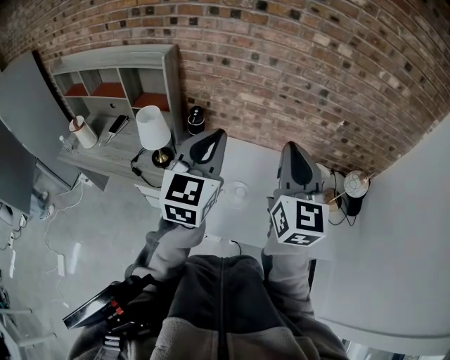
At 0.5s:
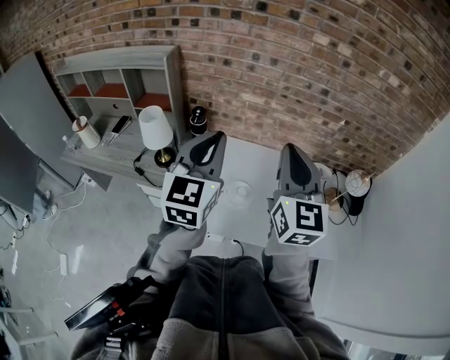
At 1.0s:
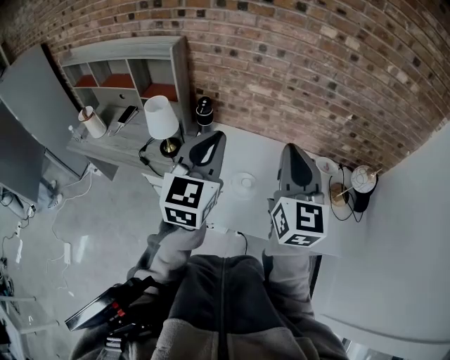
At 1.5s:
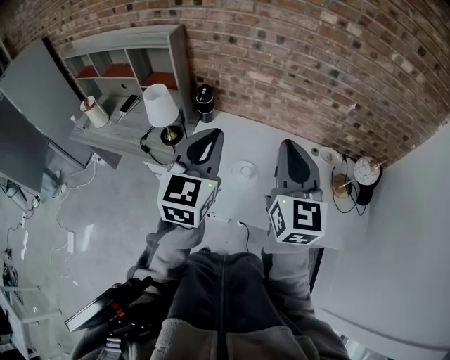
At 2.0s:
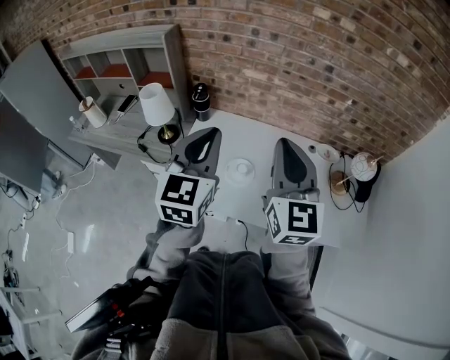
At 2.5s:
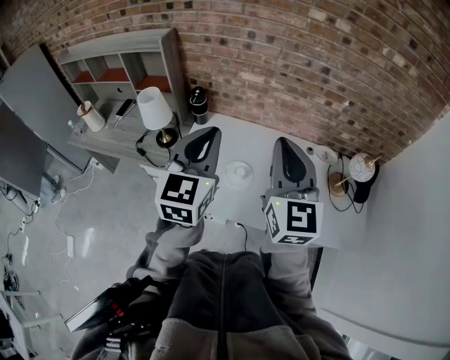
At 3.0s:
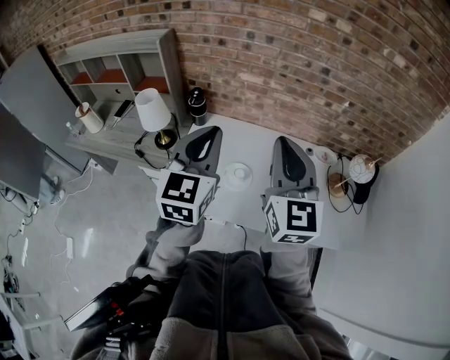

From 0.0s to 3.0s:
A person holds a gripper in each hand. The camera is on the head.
From 0.0s to 1.5s: The left gripper changes place by some 5 cm. Meanwhile the right gripper ends up about 5 cm from where it was.
From 1.5s to 3.0s: There are only small adjustments of the grippers.

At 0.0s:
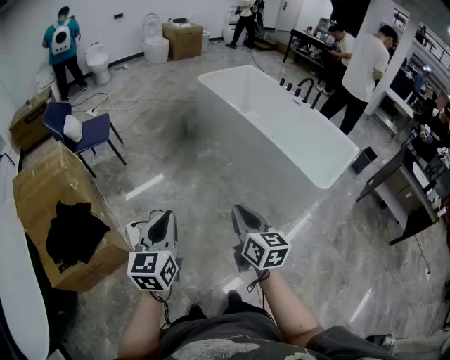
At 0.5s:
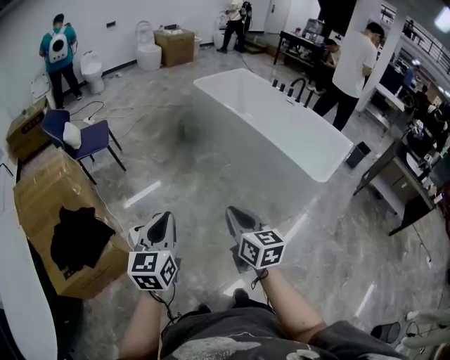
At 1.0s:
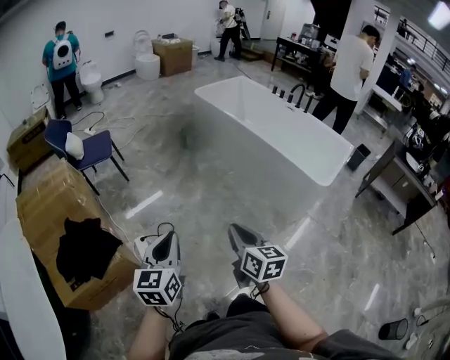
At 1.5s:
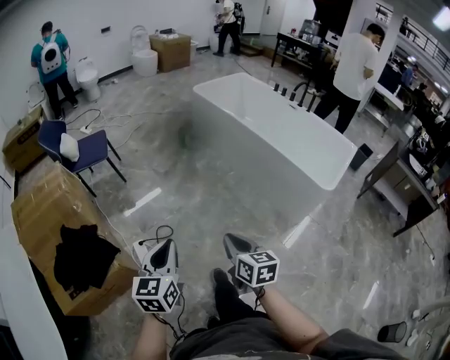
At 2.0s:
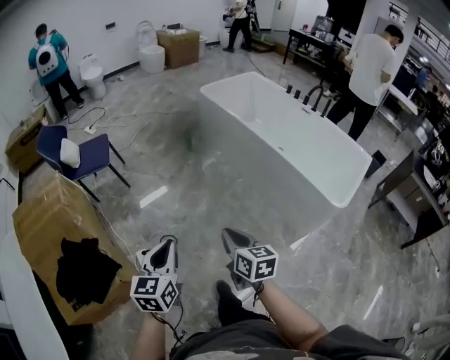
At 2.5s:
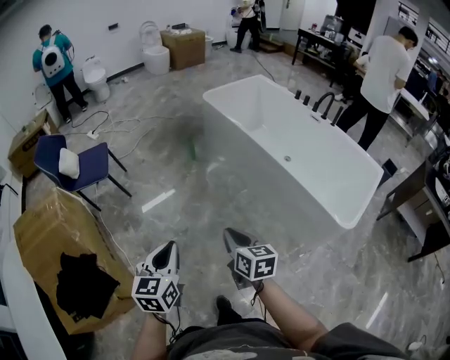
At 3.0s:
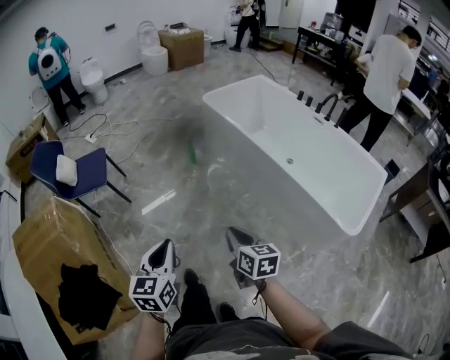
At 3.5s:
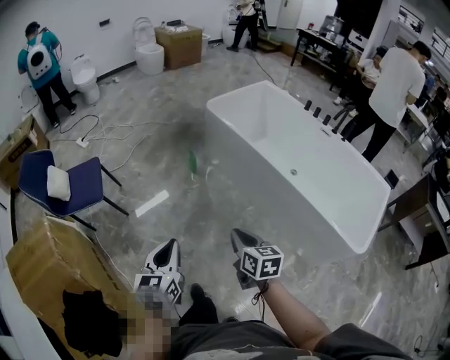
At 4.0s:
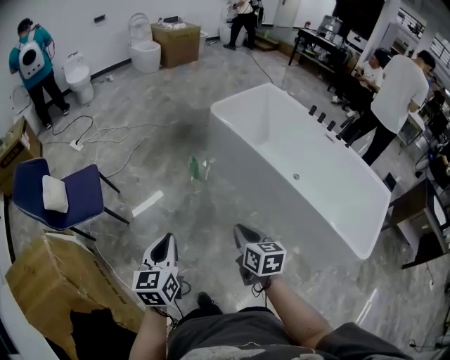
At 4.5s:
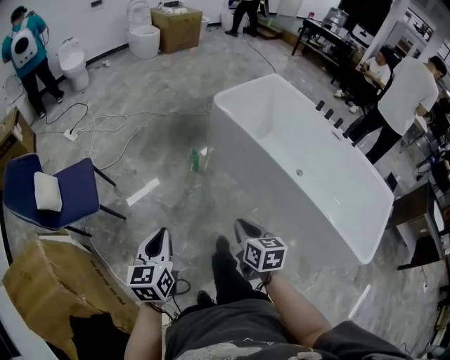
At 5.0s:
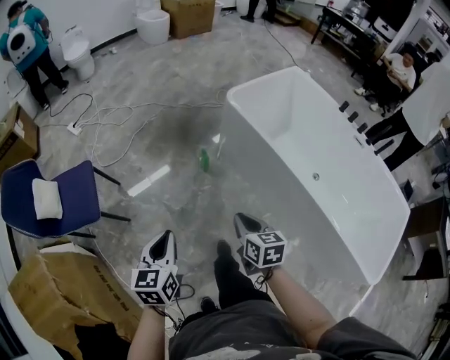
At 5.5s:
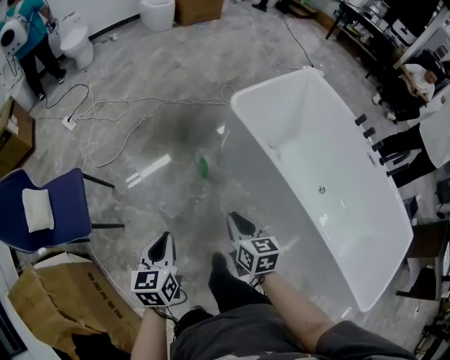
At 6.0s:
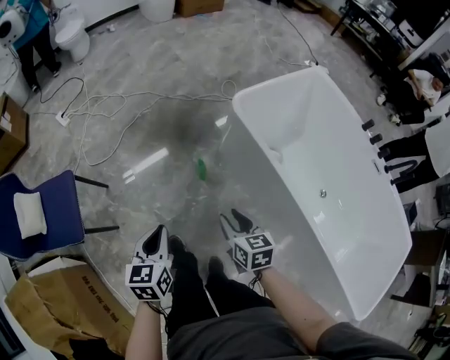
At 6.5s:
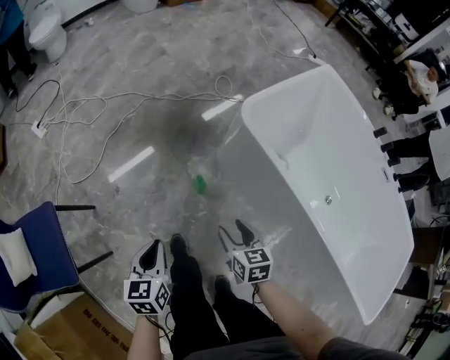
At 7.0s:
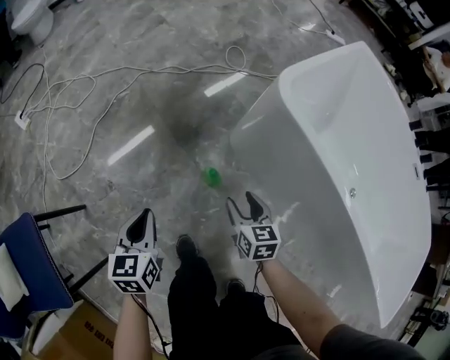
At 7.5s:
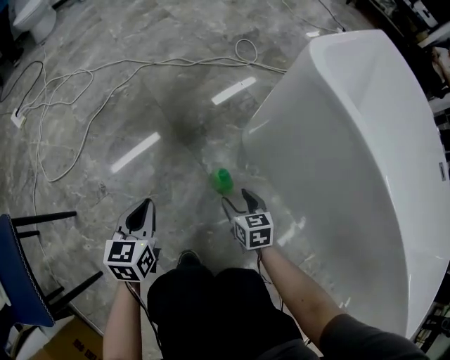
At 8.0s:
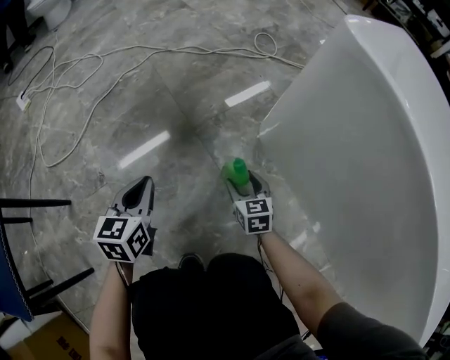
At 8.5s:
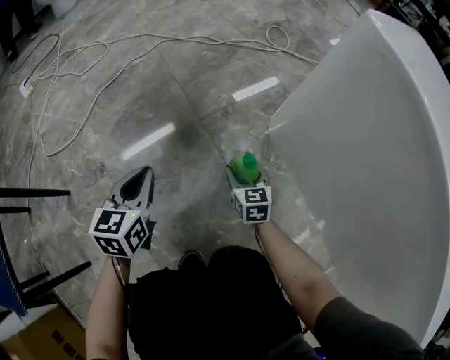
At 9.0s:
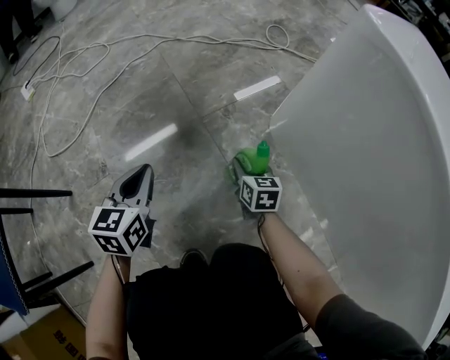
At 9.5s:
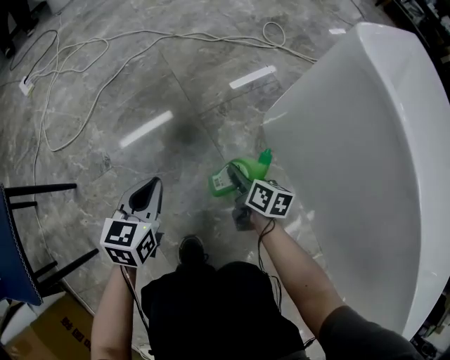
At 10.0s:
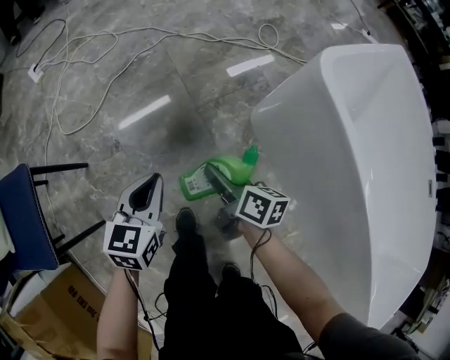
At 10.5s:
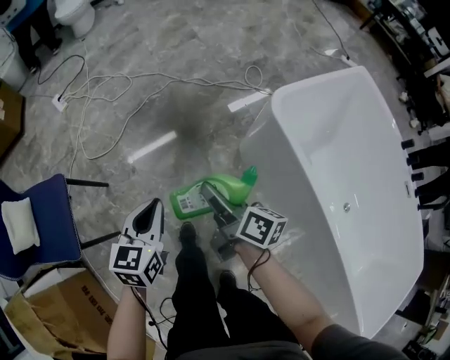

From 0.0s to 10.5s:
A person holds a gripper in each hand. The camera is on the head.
From 0.0s to 2.0s: Both grippers travel together forward, to the left and downward, roughly 15 cm.
From 2.0s to 4.0s: Both grippers are carried forward, about 40 cm.
From 4.0s to 6.5s: The two grippers travel together, forward, roughly 50 cm. The grippers both shift downward by some 30 cm. The right gripper opens.
From 6.5s to 8.5s: The two grippers go approximately 50 cm downward and forward.
From 8.5s to 10.5s: Both grippers travel together upward, roughly 50 cm. The right gripper rotates around the line of its fingers by about 50 degrees, clockwise from behind.

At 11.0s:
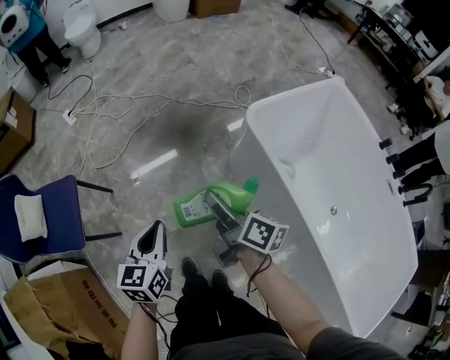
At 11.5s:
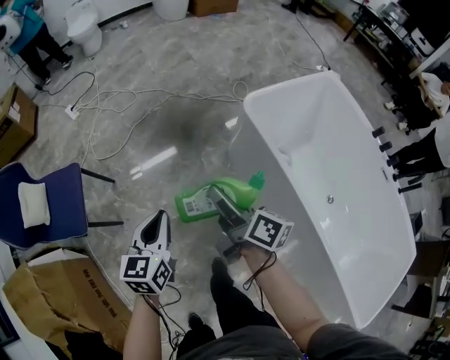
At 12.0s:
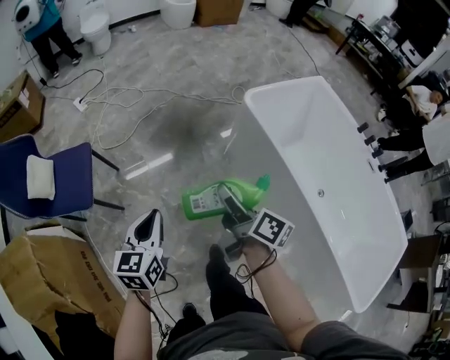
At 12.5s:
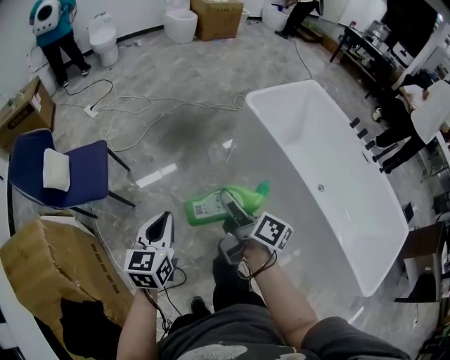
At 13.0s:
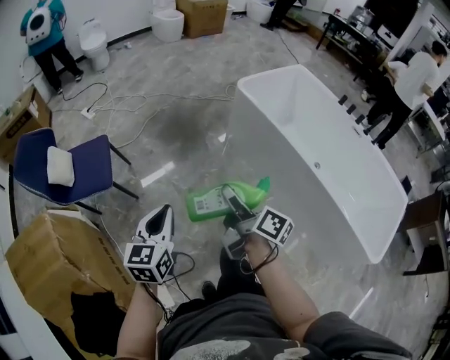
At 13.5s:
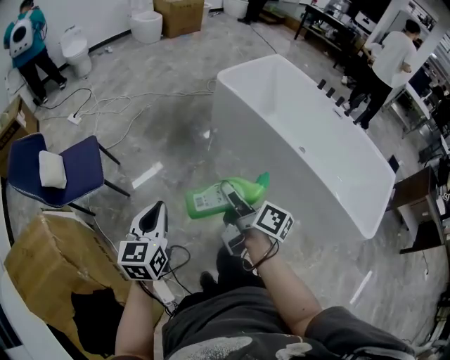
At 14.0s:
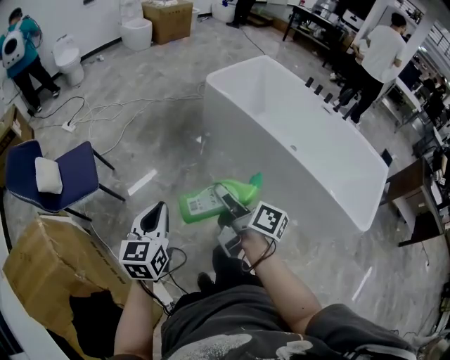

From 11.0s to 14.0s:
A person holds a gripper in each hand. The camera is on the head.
From 11.0s to 12.5s: The grippers both shift backward by some 30 cm.
From 12.5s to 14.0s: Both grippers travel together backward, about 20 cm.

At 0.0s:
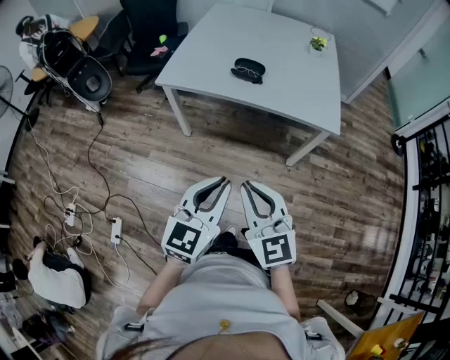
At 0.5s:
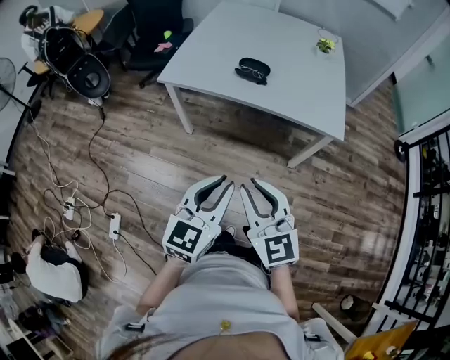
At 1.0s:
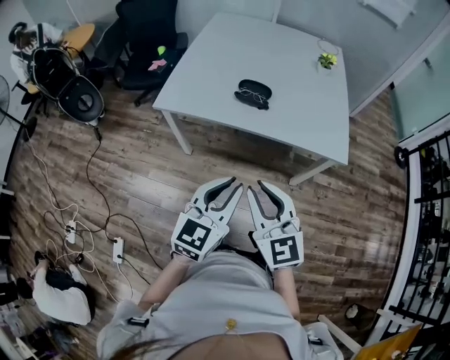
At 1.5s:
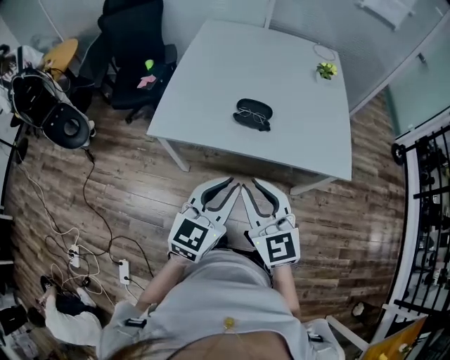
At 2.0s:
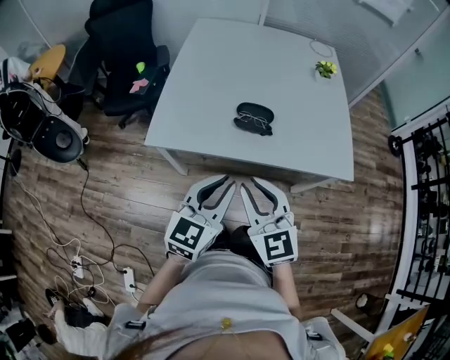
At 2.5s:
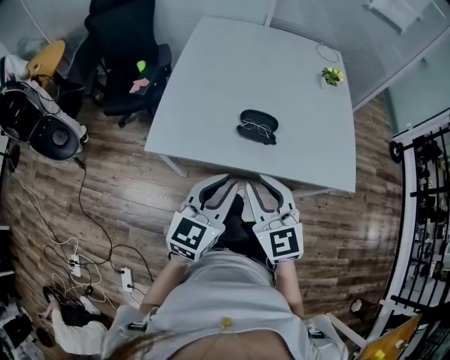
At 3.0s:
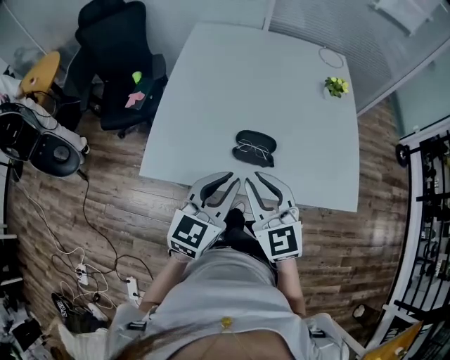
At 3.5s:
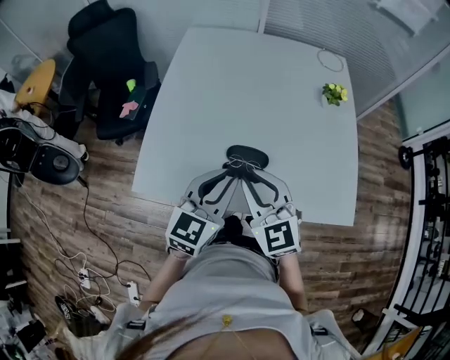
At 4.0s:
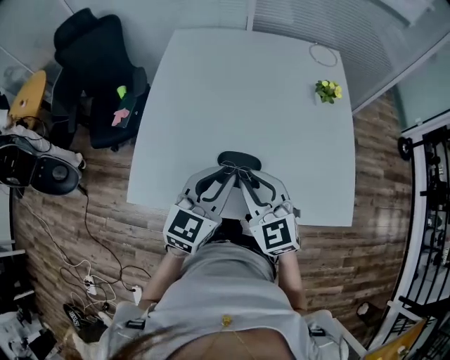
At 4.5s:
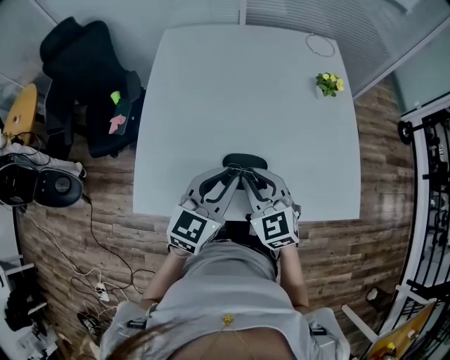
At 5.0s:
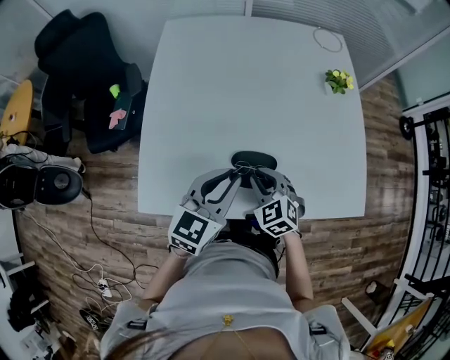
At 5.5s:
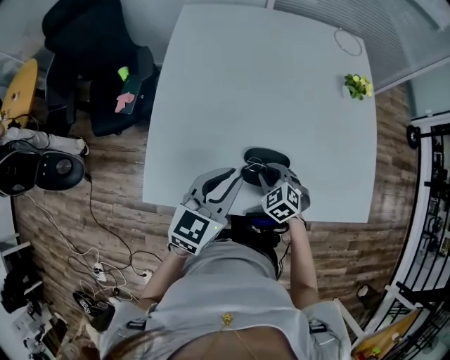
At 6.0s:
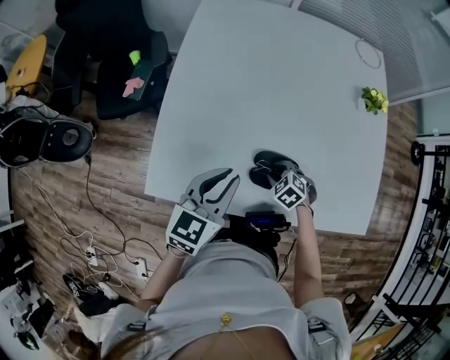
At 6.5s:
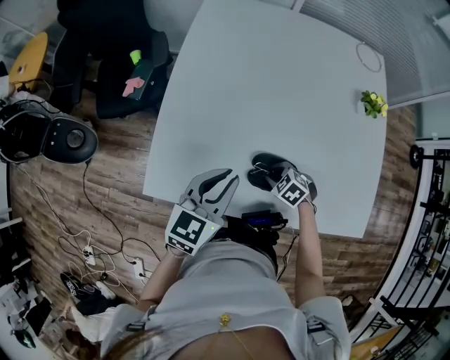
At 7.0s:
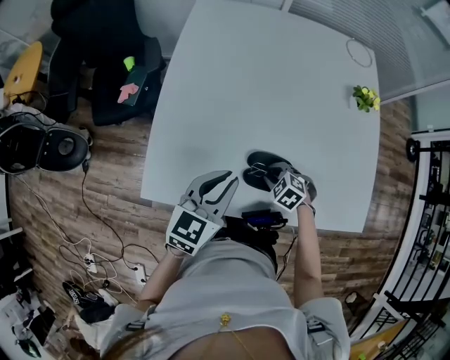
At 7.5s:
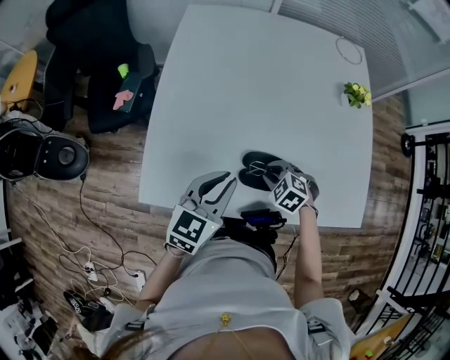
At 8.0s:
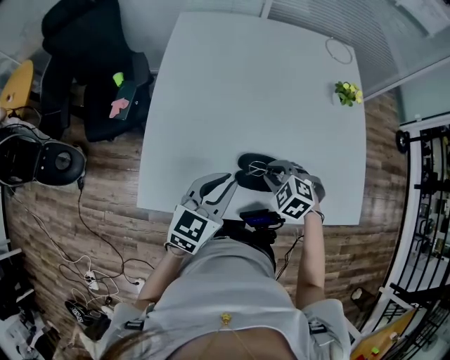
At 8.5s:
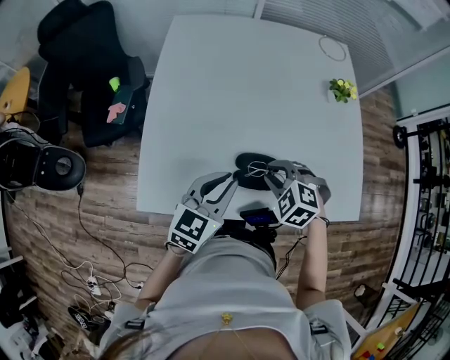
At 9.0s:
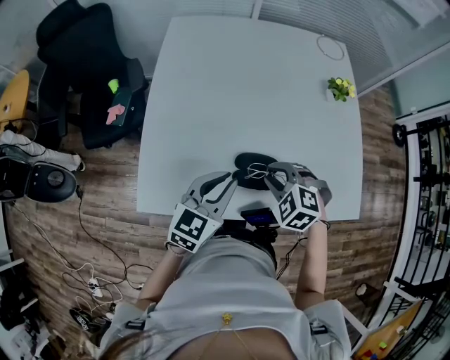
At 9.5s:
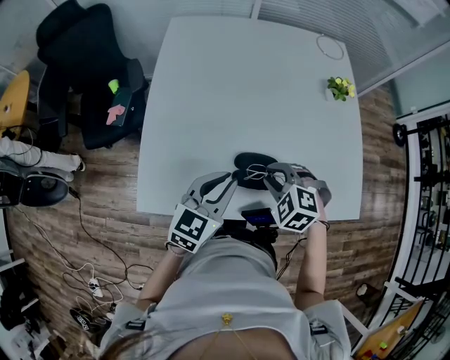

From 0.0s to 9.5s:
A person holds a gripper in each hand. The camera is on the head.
From 0.0s to 2.0s: The two grippers go roughly 30 cm forward.
From 2.0s to 4.0s: Both grippers travel together forward, about 25 cm.
From 4.0s to 5.5s: The right gripper shifts approximately 20 cm downward, and angles its fingers downward, by about 40 degrees, while the left gripper heads to the left, covering roughly 5 cm.
From 7.5s to 9.5s: The right gripper travels upward by some 10 cm.
